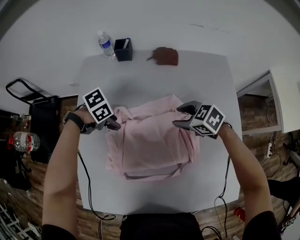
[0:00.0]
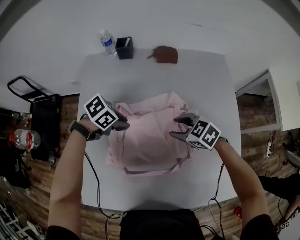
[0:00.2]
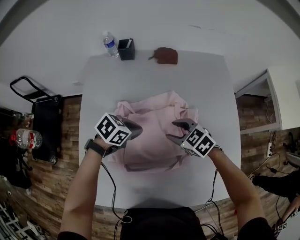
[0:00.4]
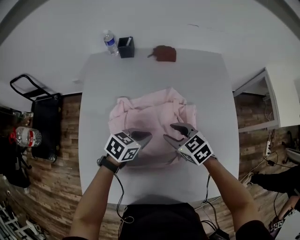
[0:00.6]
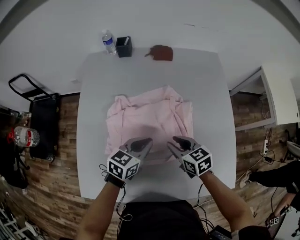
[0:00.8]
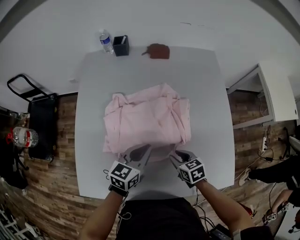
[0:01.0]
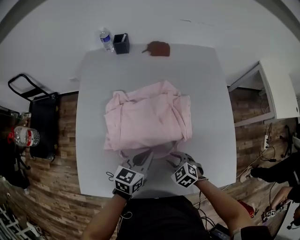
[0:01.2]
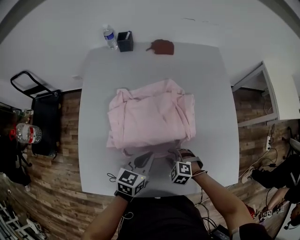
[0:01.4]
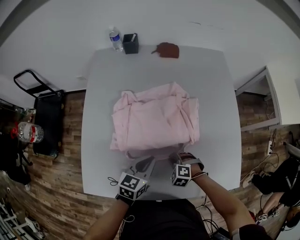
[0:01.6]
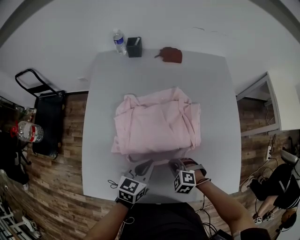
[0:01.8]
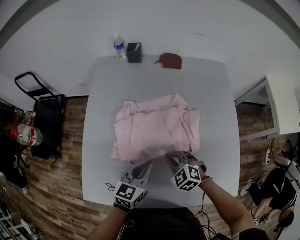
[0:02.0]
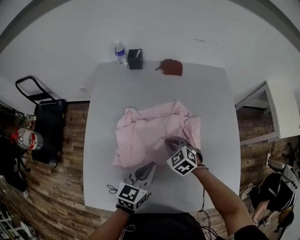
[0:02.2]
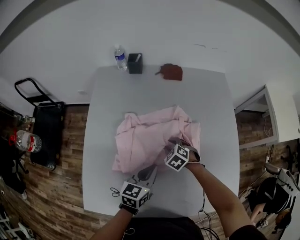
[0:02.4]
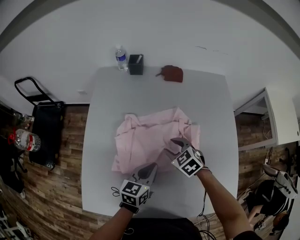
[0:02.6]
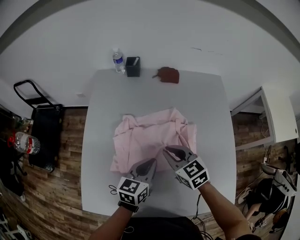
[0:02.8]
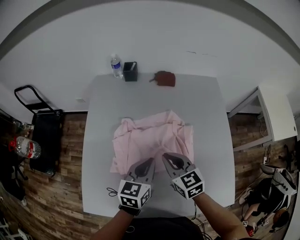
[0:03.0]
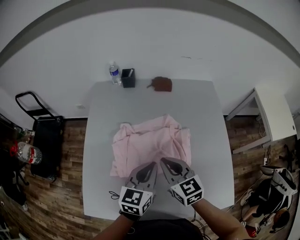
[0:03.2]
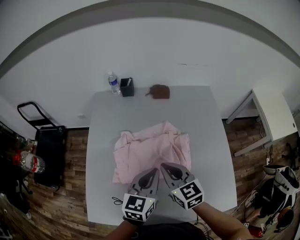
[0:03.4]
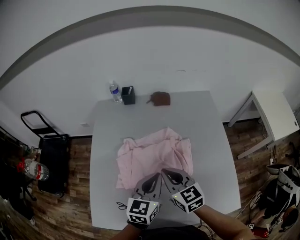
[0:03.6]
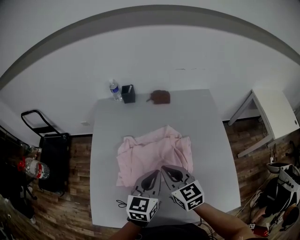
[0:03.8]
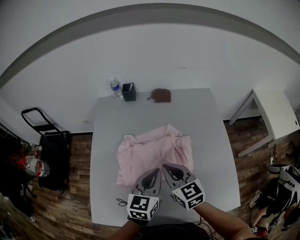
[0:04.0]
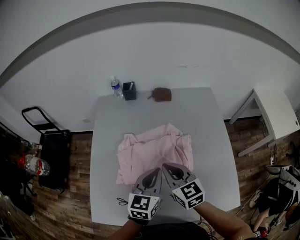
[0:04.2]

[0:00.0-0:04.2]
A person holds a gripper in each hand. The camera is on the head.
0:00.0 to 0:01.4: The right gripper ends up roughly 30 cm from where it was, turns by about 30 degrees, and closes. The left gripper changes place by approximately 25 cm, rotates roughly 60 degrees, and closes.
0:01.4 to 0:02.8: The left gripper shifts approximately 10 cm forward and upward. Meanwhile the right gripper moves up and down over roughly 20 cm, changing direction 2 times, and points its fingers about 30 degrees further upward.
0:02.8 to 0:04.2: The two grippers go roughly 10 cm upward.

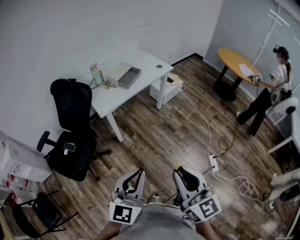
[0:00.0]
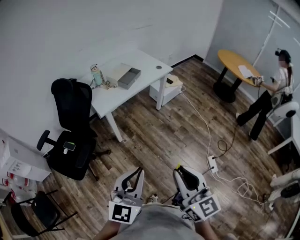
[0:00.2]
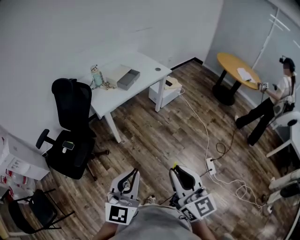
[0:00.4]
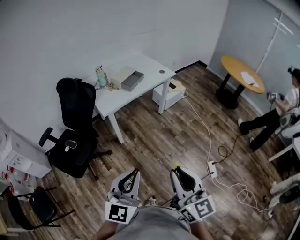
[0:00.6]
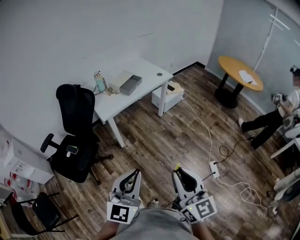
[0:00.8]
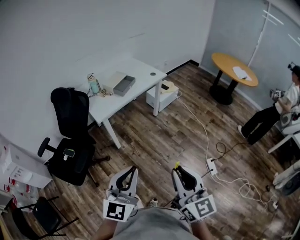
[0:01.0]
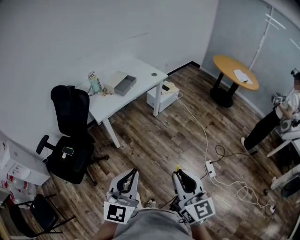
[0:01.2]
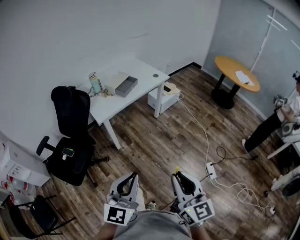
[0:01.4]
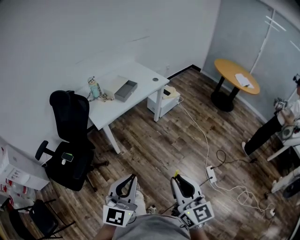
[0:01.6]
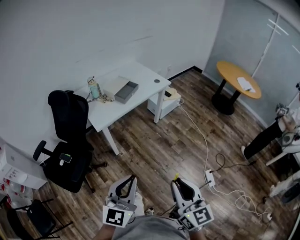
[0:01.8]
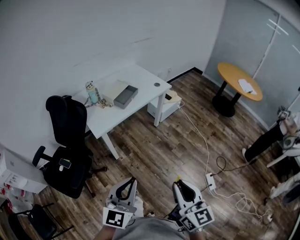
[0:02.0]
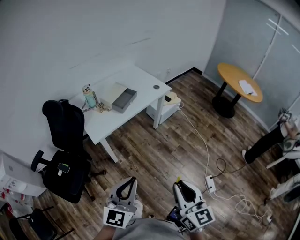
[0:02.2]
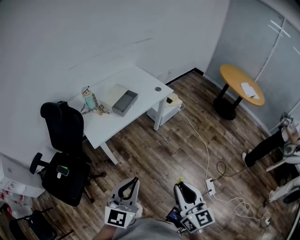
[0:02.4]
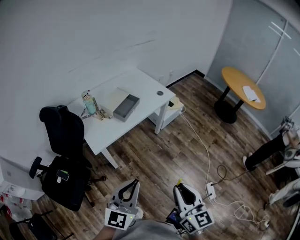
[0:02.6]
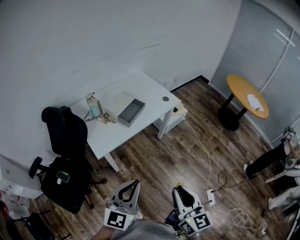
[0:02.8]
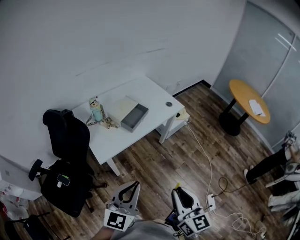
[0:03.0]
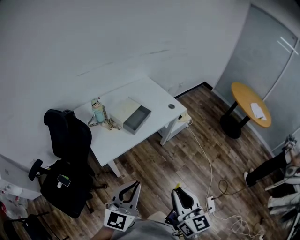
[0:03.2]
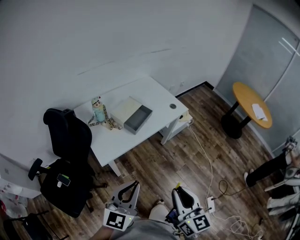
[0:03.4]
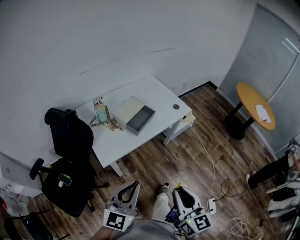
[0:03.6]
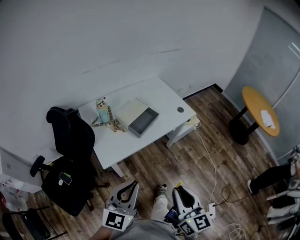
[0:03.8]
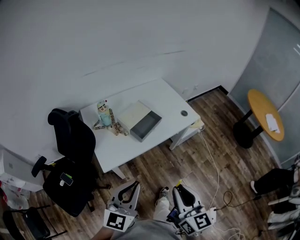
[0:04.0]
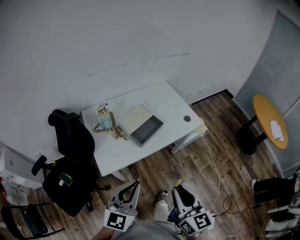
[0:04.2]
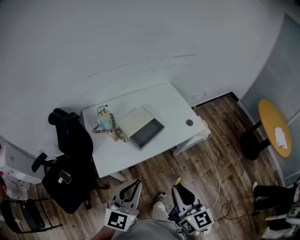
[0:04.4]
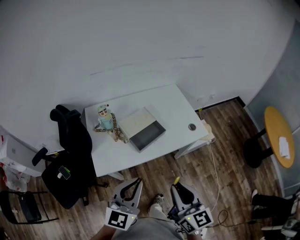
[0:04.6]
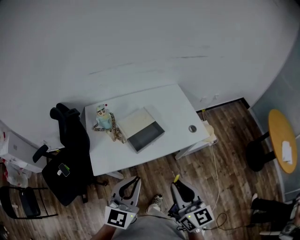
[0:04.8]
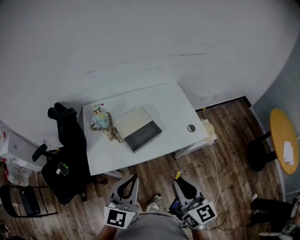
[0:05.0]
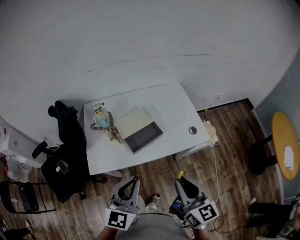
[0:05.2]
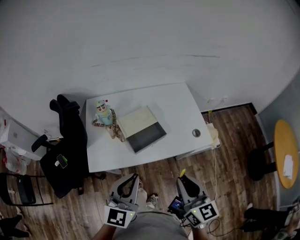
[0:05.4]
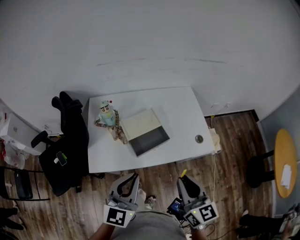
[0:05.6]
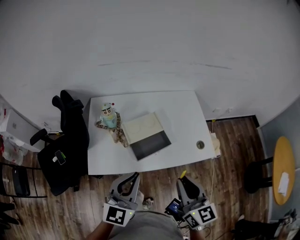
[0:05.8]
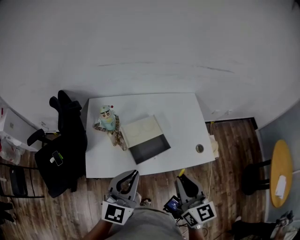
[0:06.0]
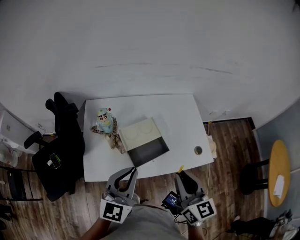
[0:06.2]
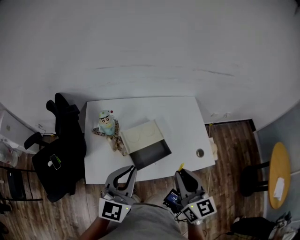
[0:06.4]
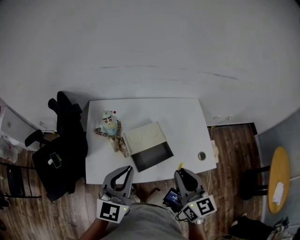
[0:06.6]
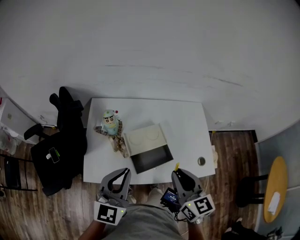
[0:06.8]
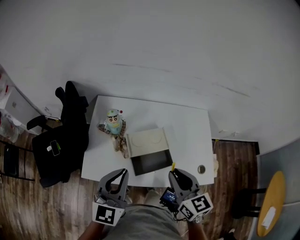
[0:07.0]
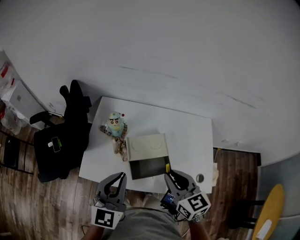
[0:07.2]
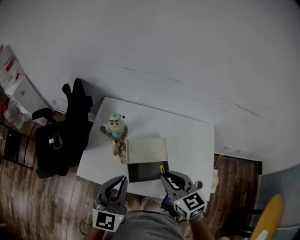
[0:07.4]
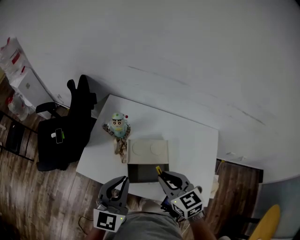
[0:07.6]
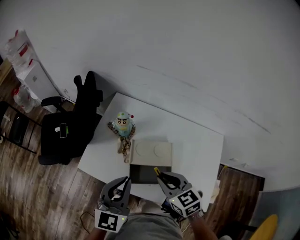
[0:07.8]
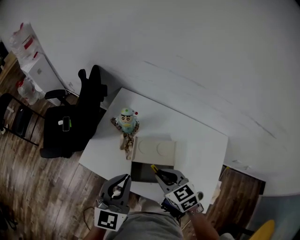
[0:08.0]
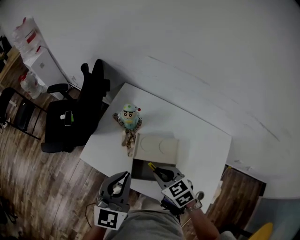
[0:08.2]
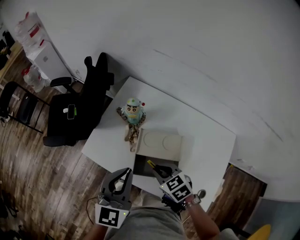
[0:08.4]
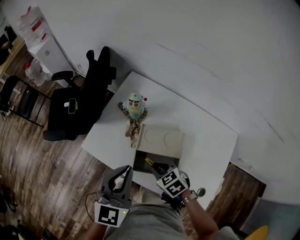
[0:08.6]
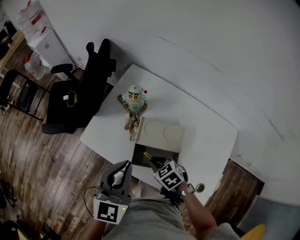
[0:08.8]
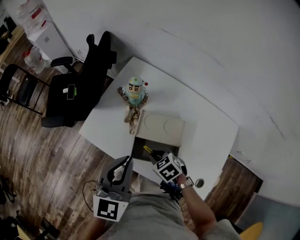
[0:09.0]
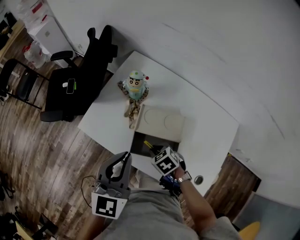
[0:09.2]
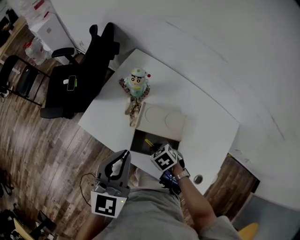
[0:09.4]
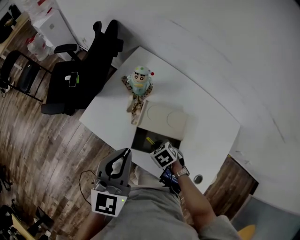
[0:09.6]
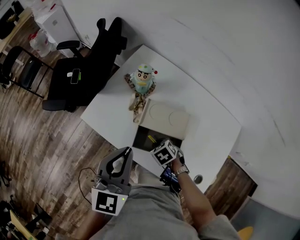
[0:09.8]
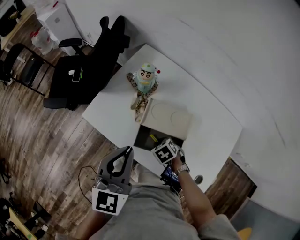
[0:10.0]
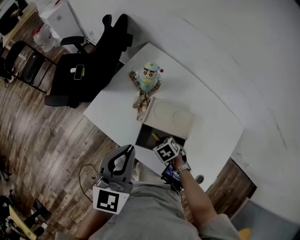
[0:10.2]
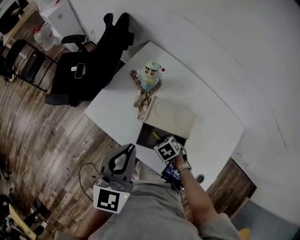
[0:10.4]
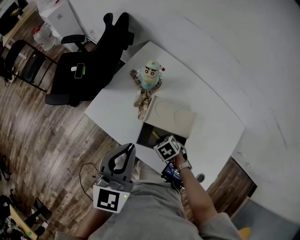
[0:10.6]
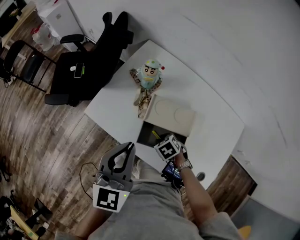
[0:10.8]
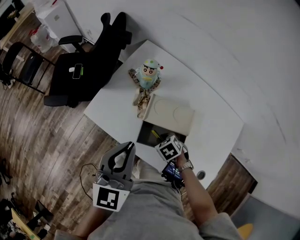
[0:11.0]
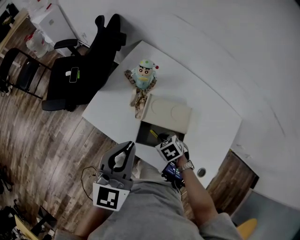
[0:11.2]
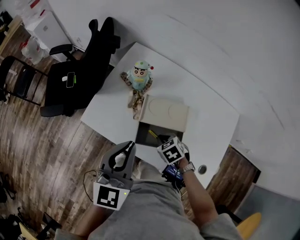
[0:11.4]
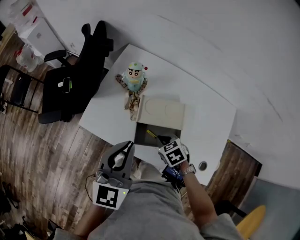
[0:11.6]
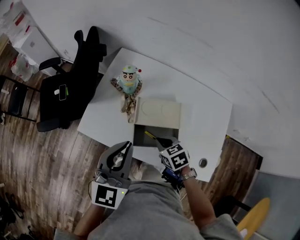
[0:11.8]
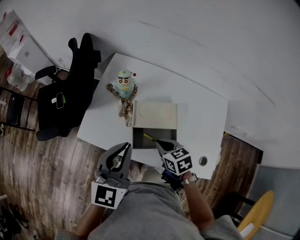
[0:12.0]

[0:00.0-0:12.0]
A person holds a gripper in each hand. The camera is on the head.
0:00.0 to 0:01.6: The grippers make only small movements.
0:01.6 to 0:03.0: Both grippers travel together forward, some 25 cm.
0:03.0 to 0:04.4: The grippers both shift forward by about 20 cm.
0:04.4 to 0:06.0: Both grippers move forward, some 20 cm.
0:06.0 to 0:07.6: The left gripper moves approximately 10 cm, and turns by approximately 30 degrees. The right gripper ends up approximately 20 cm from where it was, and swivels approximately 50 degrees.
0:07.6 to 0:09.0: The right gripper is displaced downward by some 20 cm, and points its fingers some 30 degrees further downward.
0:09.0 to 0:10.4: The right gripper goes roughly 10 cm downward.
0:10.4 to 0:12.0: The right gripper heads upward, covering roughly 15 cm, and rotates roughly 40 degrees.

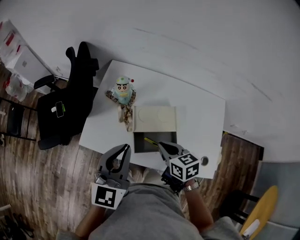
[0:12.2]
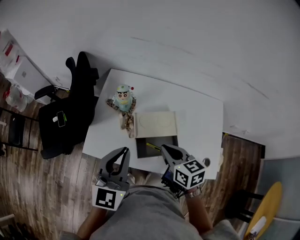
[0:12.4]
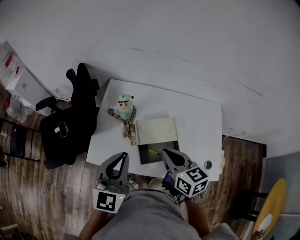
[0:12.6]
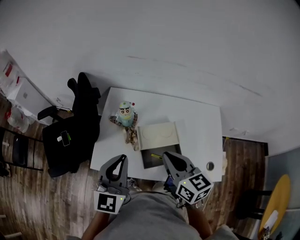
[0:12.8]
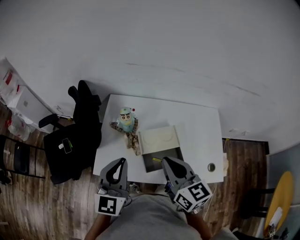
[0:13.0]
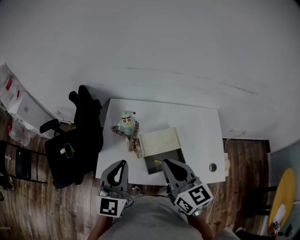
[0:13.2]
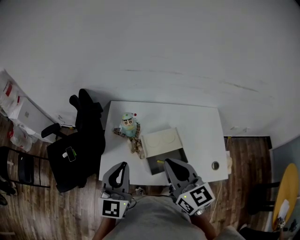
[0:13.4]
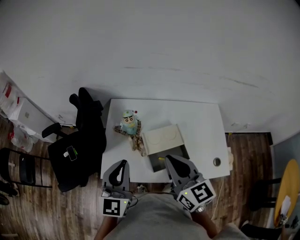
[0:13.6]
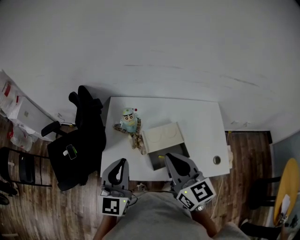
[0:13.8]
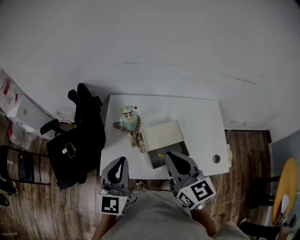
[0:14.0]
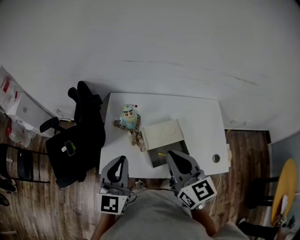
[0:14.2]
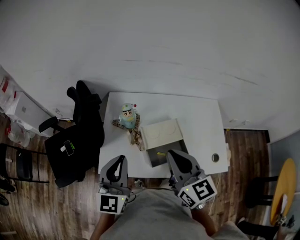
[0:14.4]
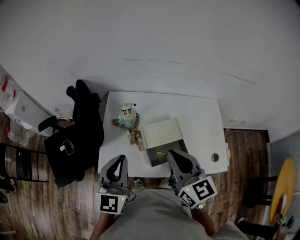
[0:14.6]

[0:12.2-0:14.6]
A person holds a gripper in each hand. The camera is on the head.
0:12.2 to 0:13.4: The left gripper goes roughly 5 cm to the left. Meanwhile the right gripper moves upward, roughly 20 cm, and points its fingers roughly 30 degrees further upward.
0:13.4 to 0:14.6: The two grippers keep their place.

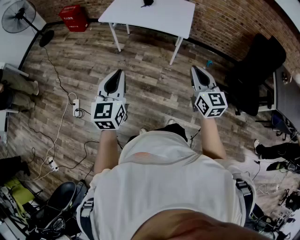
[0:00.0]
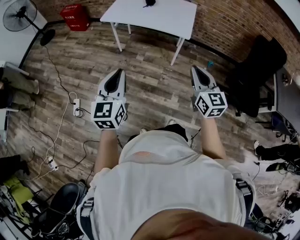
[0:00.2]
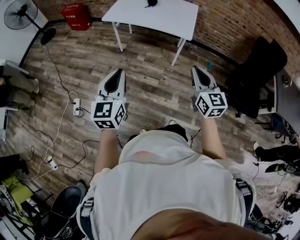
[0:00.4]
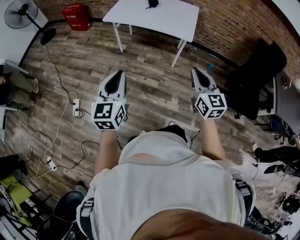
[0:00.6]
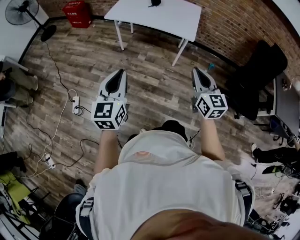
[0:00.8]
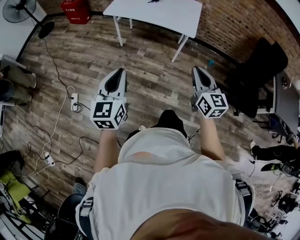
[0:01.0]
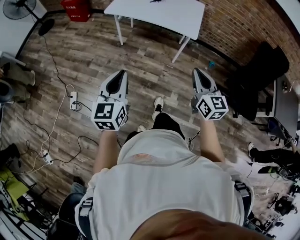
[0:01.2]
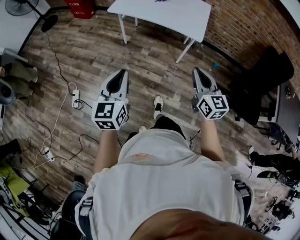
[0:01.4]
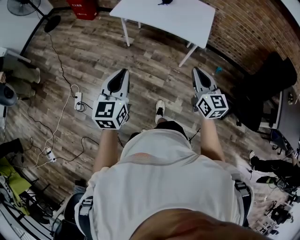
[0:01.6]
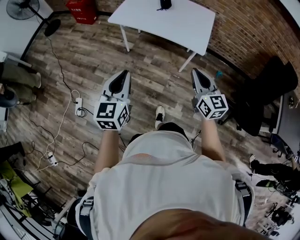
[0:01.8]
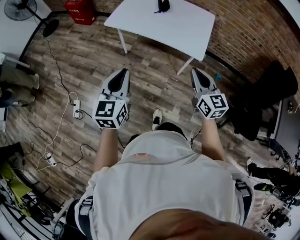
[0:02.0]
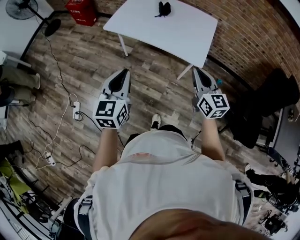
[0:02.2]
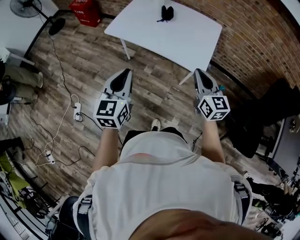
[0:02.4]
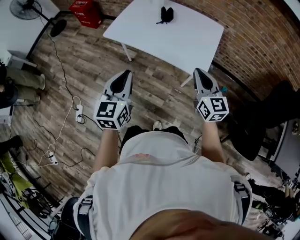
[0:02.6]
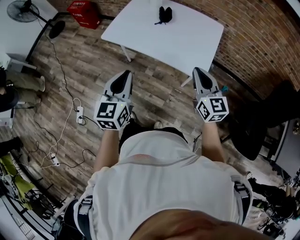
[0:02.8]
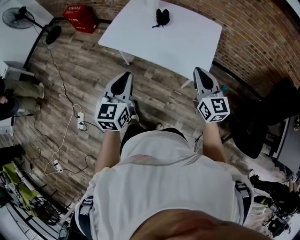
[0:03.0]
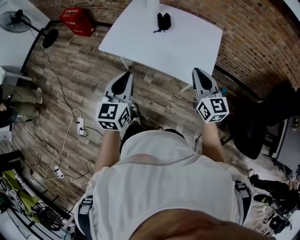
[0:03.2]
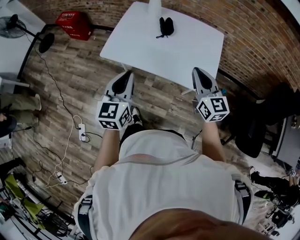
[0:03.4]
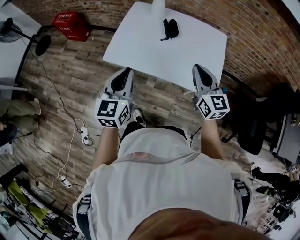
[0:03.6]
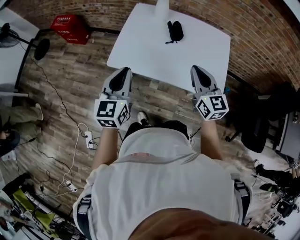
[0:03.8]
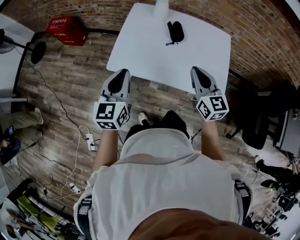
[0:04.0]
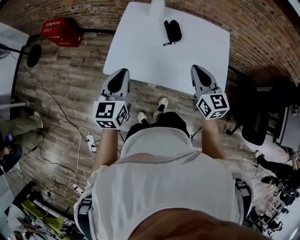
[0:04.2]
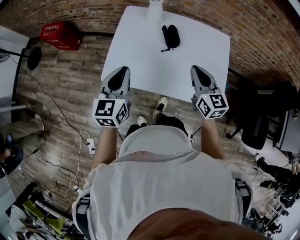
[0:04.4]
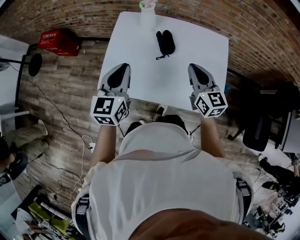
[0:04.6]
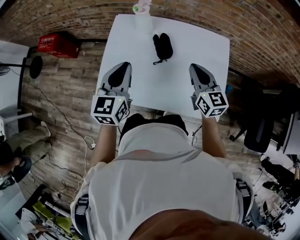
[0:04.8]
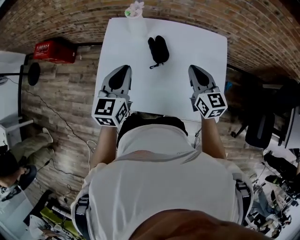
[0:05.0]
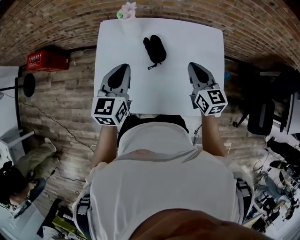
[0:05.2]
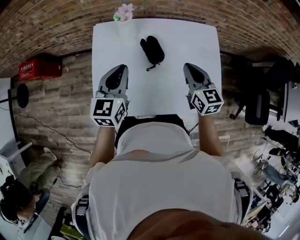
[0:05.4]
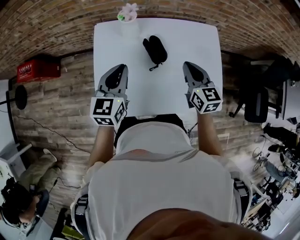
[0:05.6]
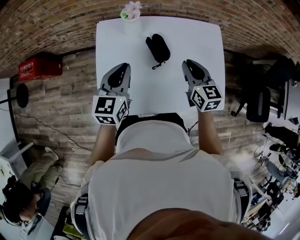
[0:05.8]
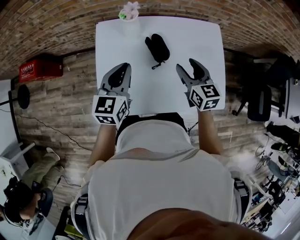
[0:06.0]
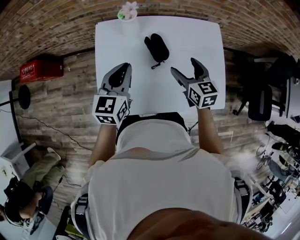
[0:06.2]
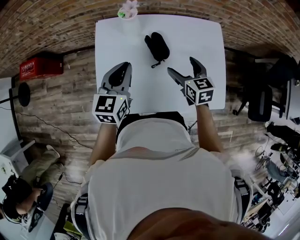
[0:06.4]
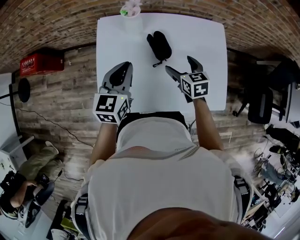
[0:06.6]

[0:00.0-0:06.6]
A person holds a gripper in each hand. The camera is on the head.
0:00.0 to 0:01.6: The right gripper goes roughly 15 cm forward and to the left. Meanwhile the left gripper travels forward by approximately 10 cm.
0:01.6 to 0:03.2: Both grippers travel together forward, approximately 35 cm.
0:03.2 to 0:05.0: The two grippers go some 35 cm forward.
0:05.0 to 0:06.6: The left gripper moves forward, about 5 cm. Meanwhile the right gripper travels downward and to the left by approximately 15 cm, changes its angle by some 30 degrees, and opens its fingers.
